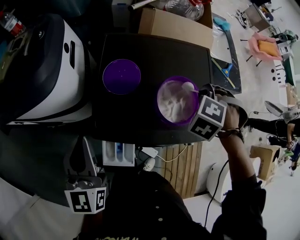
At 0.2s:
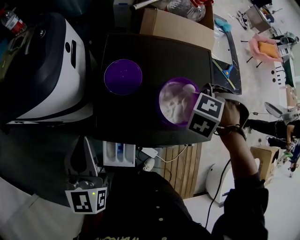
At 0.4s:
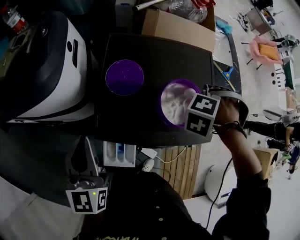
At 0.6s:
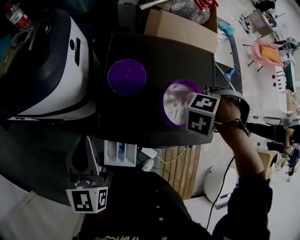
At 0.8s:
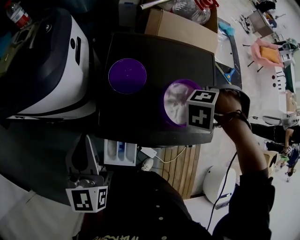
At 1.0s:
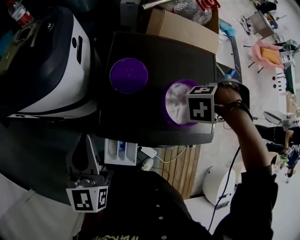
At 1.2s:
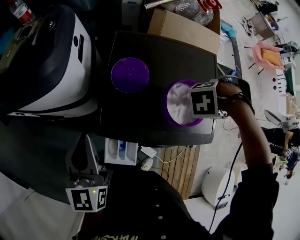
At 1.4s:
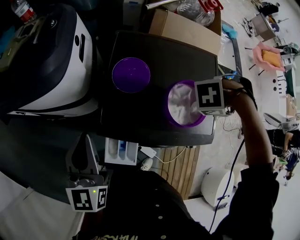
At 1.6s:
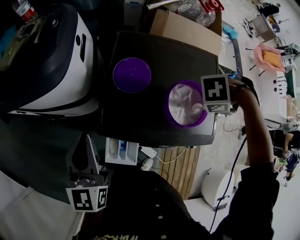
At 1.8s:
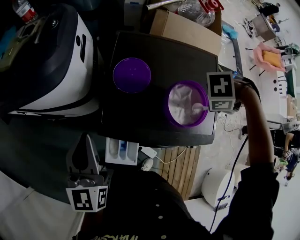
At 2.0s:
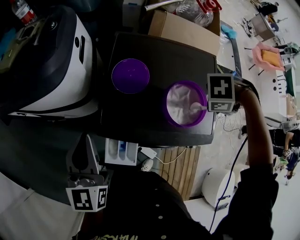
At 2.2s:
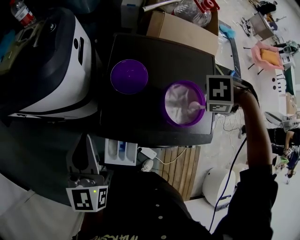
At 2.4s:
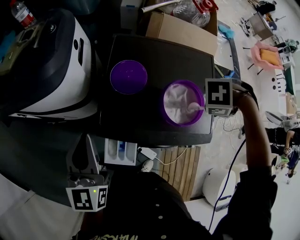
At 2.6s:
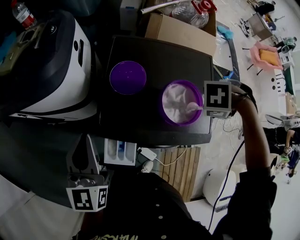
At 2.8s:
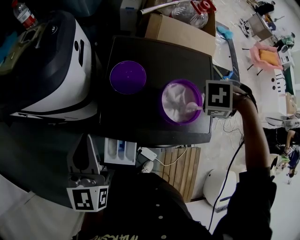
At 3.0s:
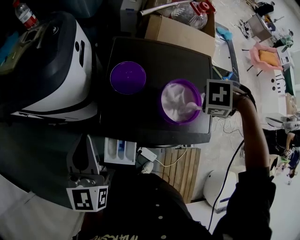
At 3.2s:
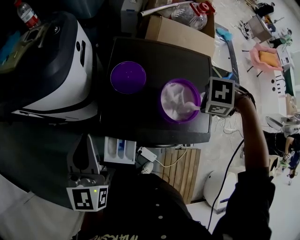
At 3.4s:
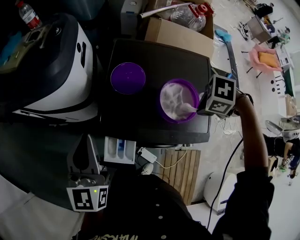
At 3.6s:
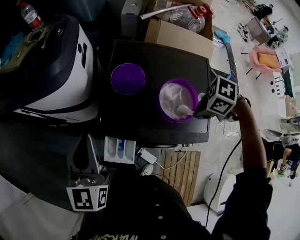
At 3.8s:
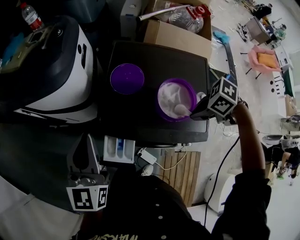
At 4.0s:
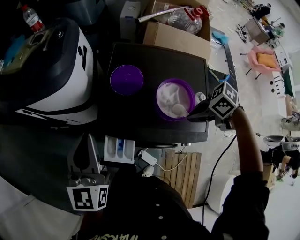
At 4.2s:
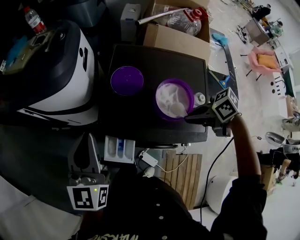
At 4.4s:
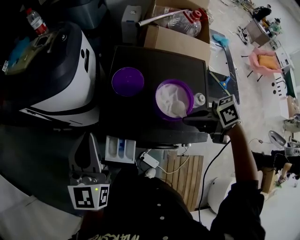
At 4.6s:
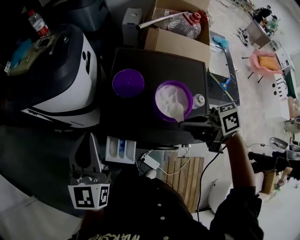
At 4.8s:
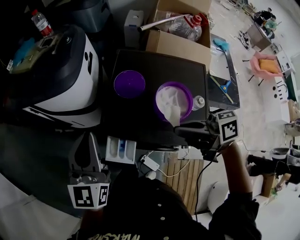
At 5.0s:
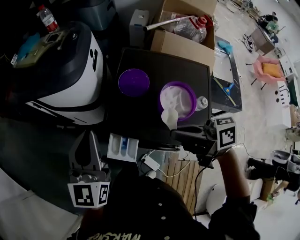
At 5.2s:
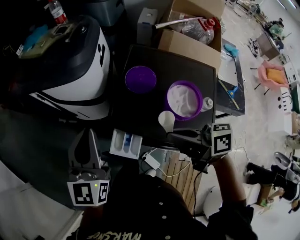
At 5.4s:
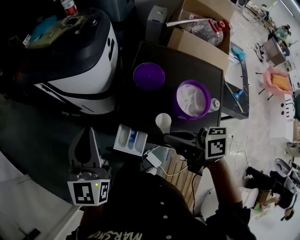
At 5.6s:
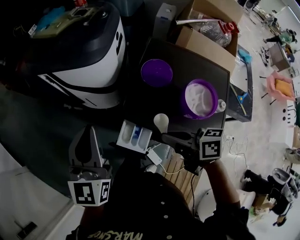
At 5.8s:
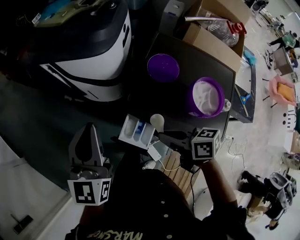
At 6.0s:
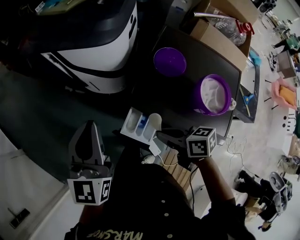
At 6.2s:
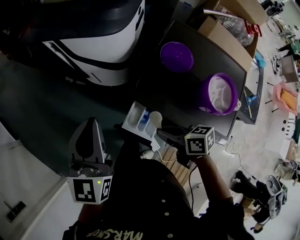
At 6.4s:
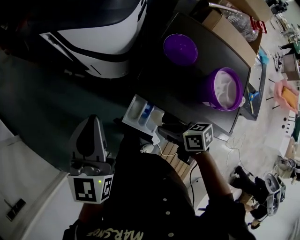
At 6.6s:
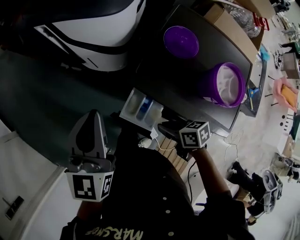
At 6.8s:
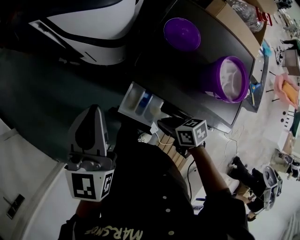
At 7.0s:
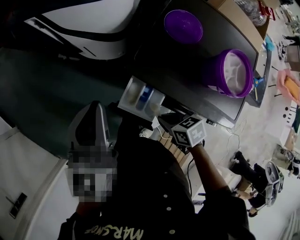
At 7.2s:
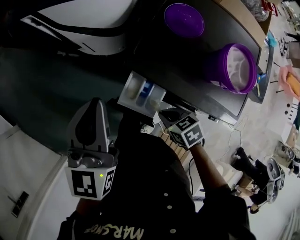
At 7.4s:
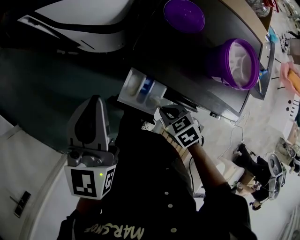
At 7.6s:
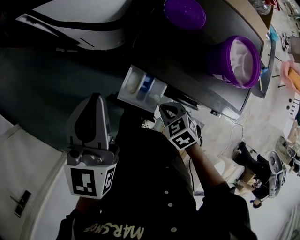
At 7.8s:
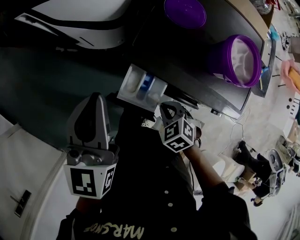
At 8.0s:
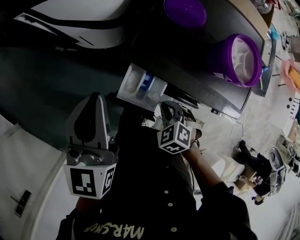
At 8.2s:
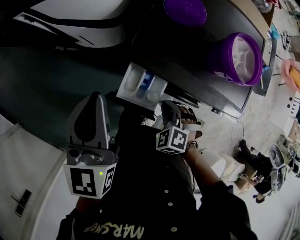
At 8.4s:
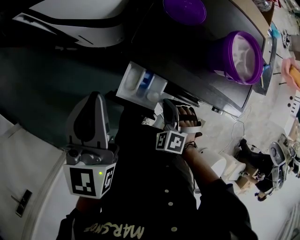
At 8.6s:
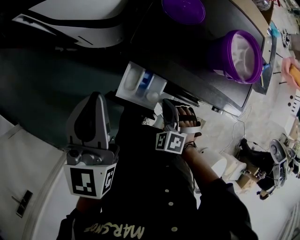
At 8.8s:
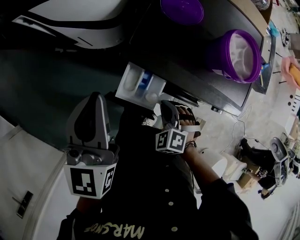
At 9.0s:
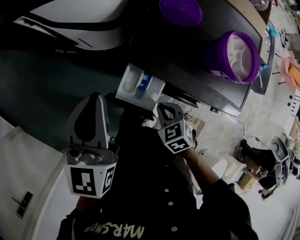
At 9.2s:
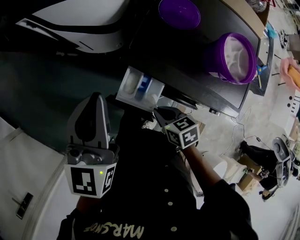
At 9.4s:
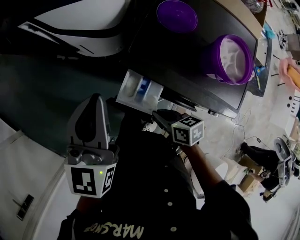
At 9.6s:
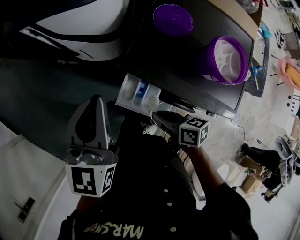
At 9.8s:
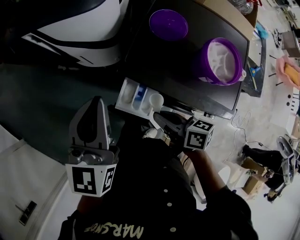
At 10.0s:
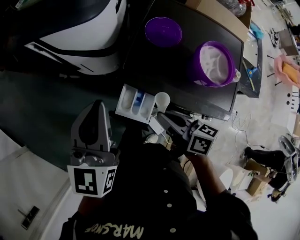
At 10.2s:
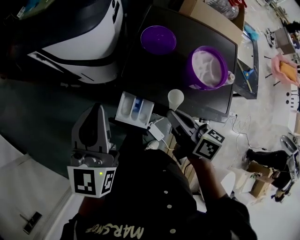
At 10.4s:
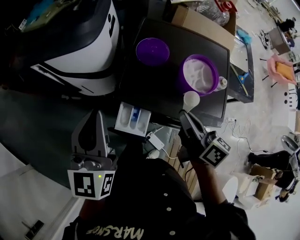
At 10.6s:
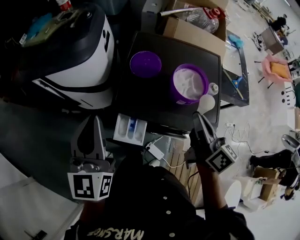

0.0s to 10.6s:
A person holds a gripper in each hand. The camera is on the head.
0.0s to 1.6s: The right gripper turns by some 50 degrees.
1.6s to 3.0s: The grippers make only small movements.
3.0s to 4.6s: The left gripper ends up approximately 5 cm from where it was. The right gripper moves some 15 cm, and tilts its fingers about 60 degrees upward.
4.6s to 6.0s: The left gripper heads to the left, covering about 10 cm. The right gripper is displaced to the left and downward by approximately 20 cm.
6.0s to 7.6s: The left gripper shifts roughly 10 cm downward, while the right gripper is displaced downward by approximately 15 cm, and tips its fingers downward by about 40 degrees.
9.0s to 10.6s: The right gripper travels upward by approximately 30 cm, and points its fingers roughly 60 degrees further upward. The left gripper is displaced upward by some 10 cm.

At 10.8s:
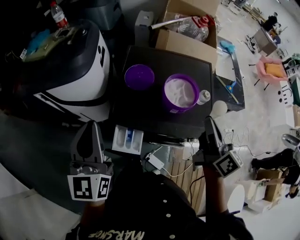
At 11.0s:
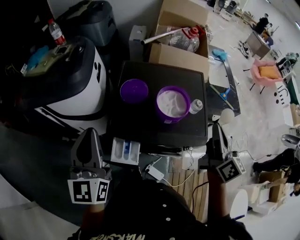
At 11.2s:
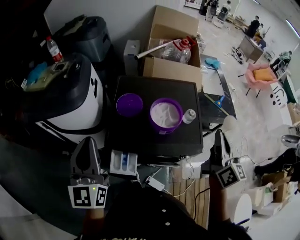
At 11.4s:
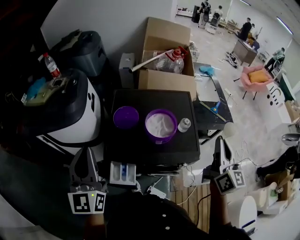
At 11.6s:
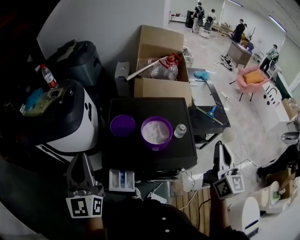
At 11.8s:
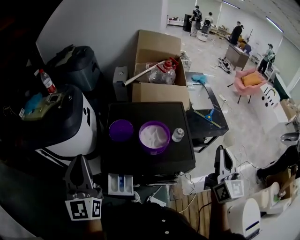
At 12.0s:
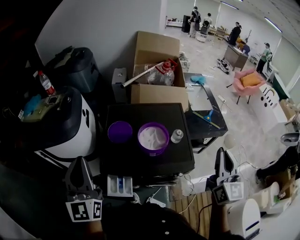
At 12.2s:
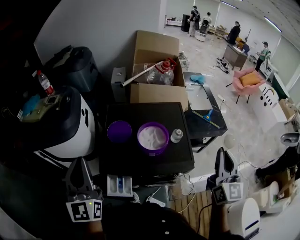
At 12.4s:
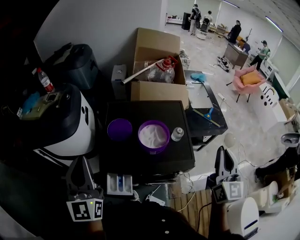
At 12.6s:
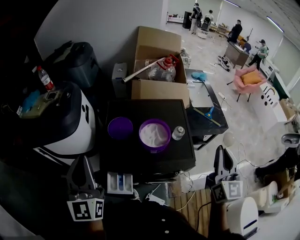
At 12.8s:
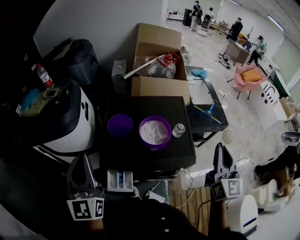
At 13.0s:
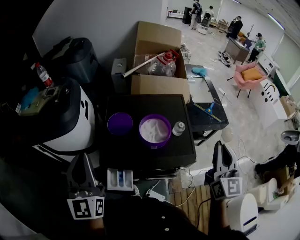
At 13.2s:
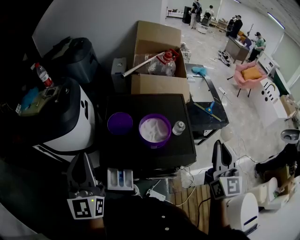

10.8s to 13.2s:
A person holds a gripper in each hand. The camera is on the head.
10.8s to 12.0s: The left gripper travels upward by about 5 cm; the right gripper moves to the right and upward, approximately 20 cm, and rolls counterclockwise, seen from behind, by roughly 40 degrees.
12.0s to 13.2s: The grippers stay close to where they were, moving slightly.

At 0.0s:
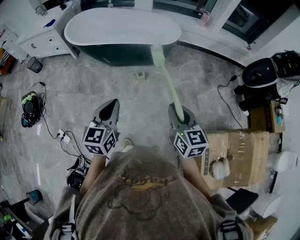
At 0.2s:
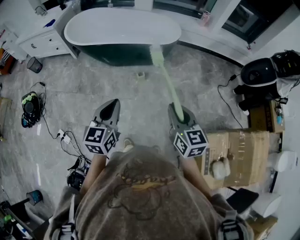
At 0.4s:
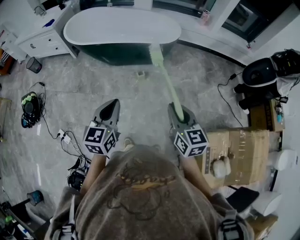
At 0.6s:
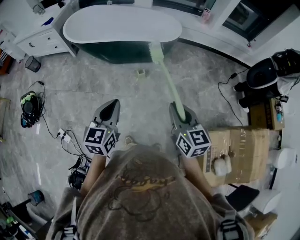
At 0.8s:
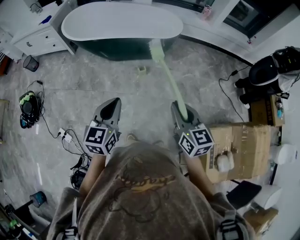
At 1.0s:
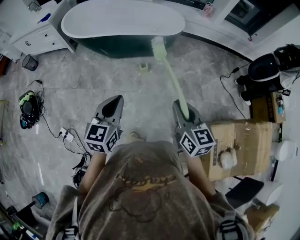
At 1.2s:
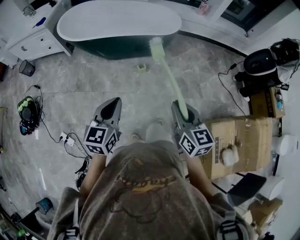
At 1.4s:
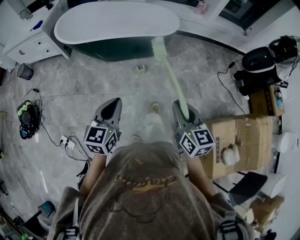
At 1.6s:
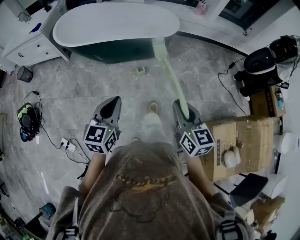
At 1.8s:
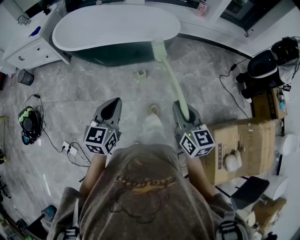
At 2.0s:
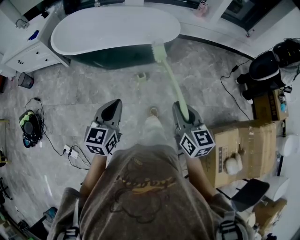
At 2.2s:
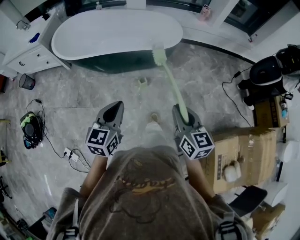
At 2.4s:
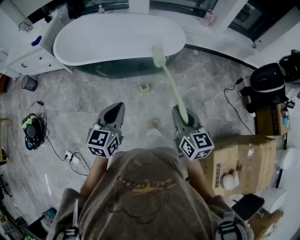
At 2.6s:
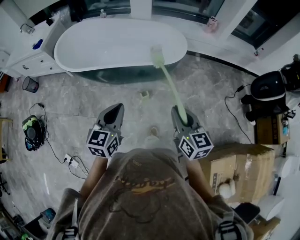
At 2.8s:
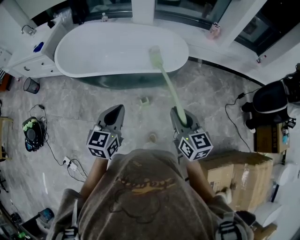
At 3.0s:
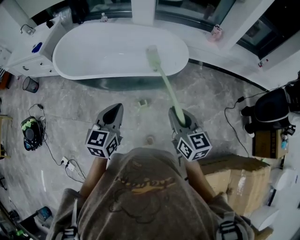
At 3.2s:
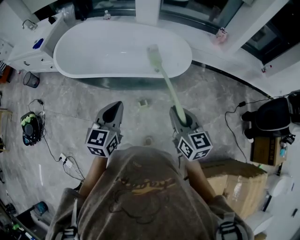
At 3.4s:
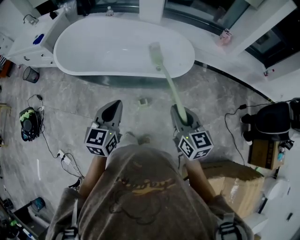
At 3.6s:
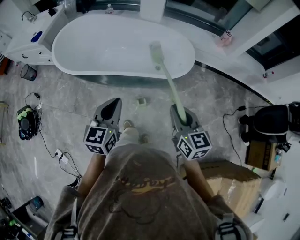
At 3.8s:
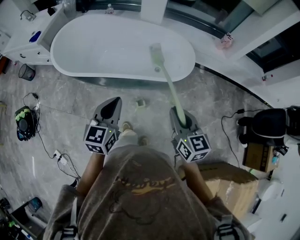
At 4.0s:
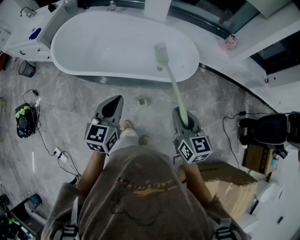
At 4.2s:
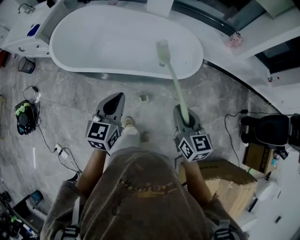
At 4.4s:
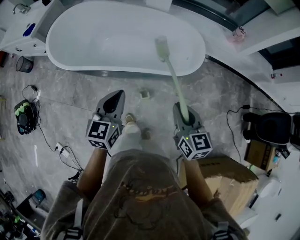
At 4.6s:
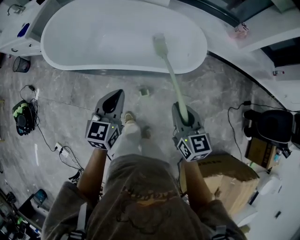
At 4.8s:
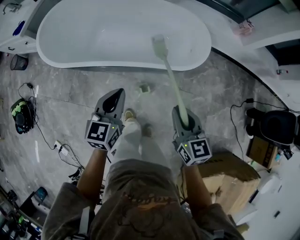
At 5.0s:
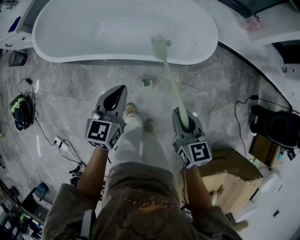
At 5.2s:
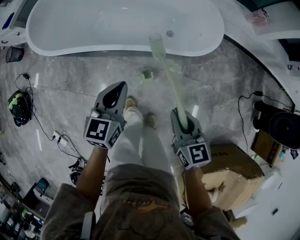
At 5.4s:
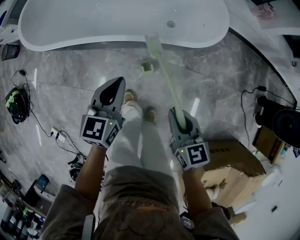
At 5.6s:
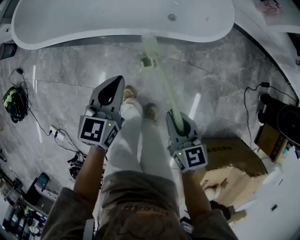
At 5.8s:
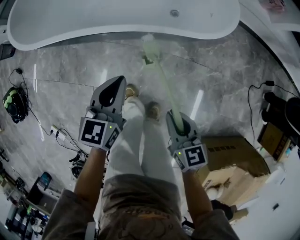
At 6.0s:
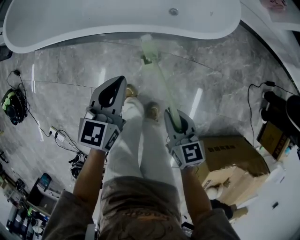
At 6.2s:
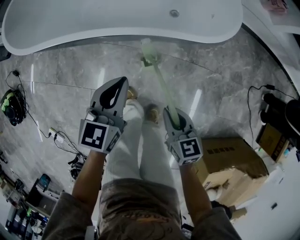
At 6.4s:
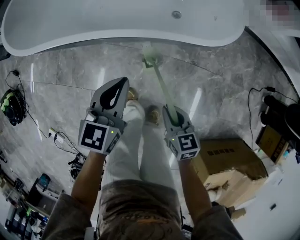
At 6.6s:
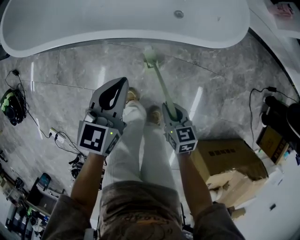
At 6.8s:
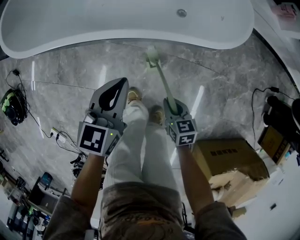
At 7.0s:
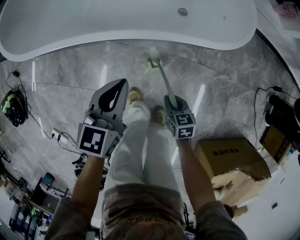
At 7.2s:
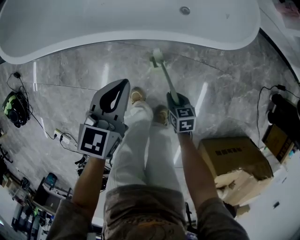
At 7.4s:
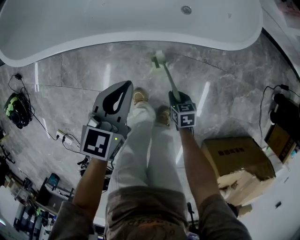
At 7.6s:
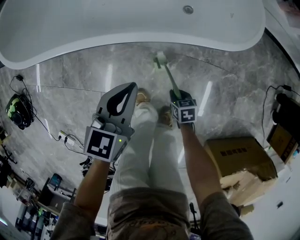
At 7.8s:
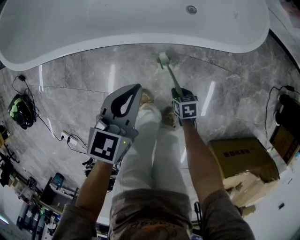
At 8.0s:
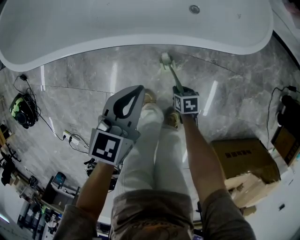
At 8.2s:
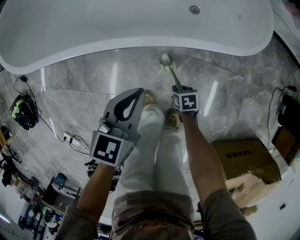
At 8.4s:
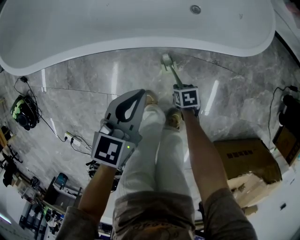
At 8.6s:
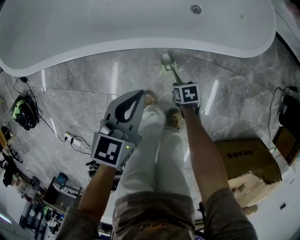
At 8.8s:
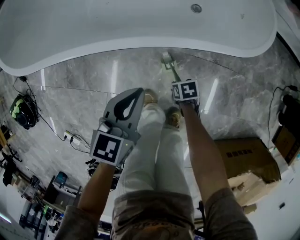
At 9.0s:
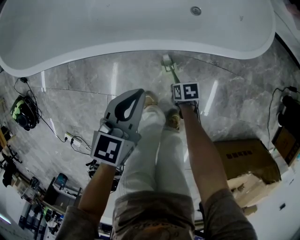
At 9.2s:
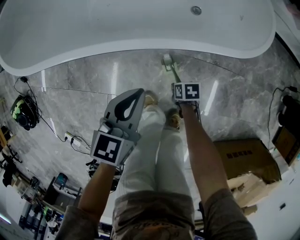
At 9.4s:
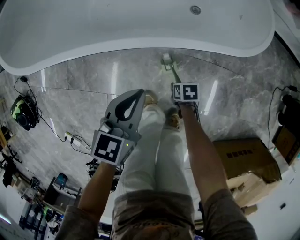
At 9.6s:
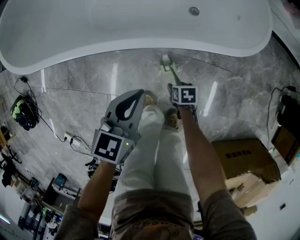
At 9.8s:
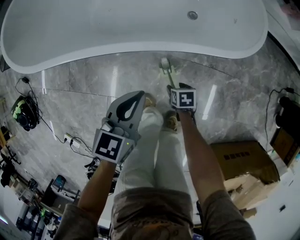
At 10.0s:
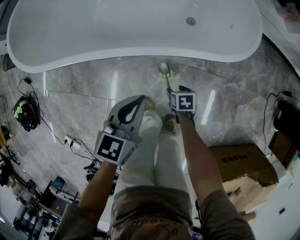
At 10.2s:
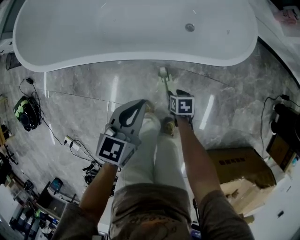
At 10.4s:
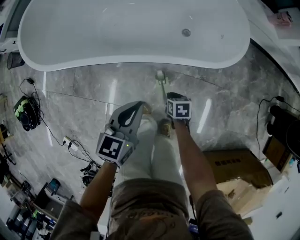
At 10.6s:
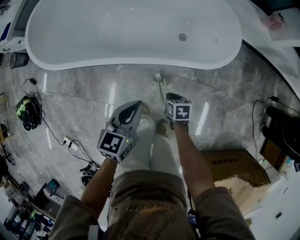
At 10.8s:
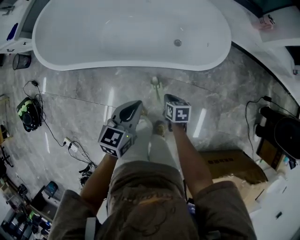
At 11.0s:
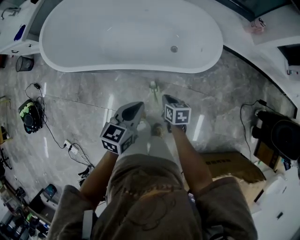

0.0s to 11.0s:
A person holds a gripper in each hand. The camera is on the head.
0.0s to 1.6s: The right gripper travels to the left by about 5 cm. Meanwhile the left gripper goes about 10 cm to the left and forward.
1.6s to 3.2s: Both grippers travel together forward, about 35 cm.
3.2s to 4.8s: The right gripper is displaced downward and forward by about 15 cm, while the left gripper is displaced forward and downward by some 20 cm.
4.8s to 6.2s: Both grippers move downward, approximately 20 cm.
6.2s to 7.8s: The right gripper is displaced downward by roughly 25 cm, and swivels roughly 30 degrees. Meanwhile the left gripper goes some 5 cm downward.
7.8s to 9.4s: There are only small adjustments of the grippers.
9.4s to 11.0s: The left gripper moves upward, roughly 20 cm. Meanwhile the right gripper goes about 35 cm upward, swivels roughly 30 degrees, and opens and closes again.
